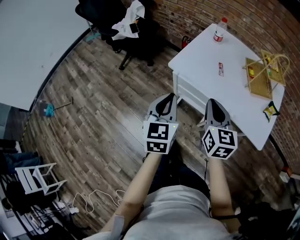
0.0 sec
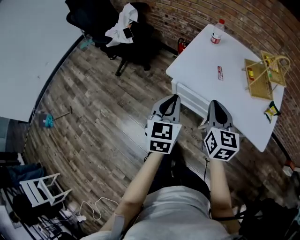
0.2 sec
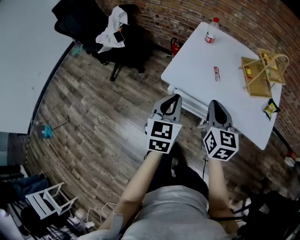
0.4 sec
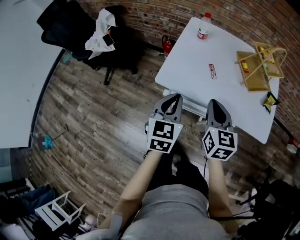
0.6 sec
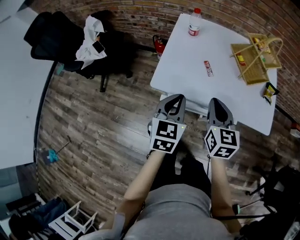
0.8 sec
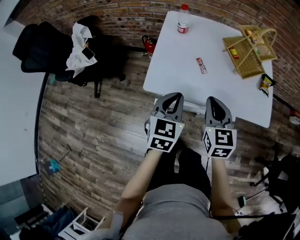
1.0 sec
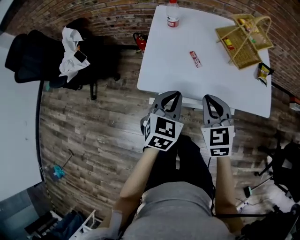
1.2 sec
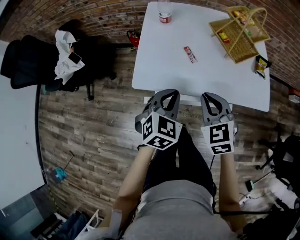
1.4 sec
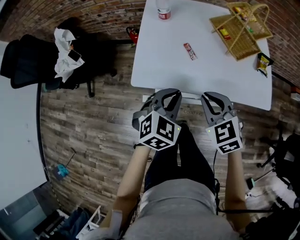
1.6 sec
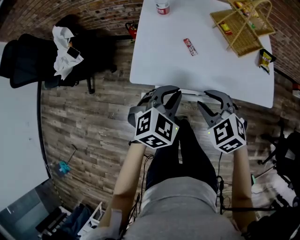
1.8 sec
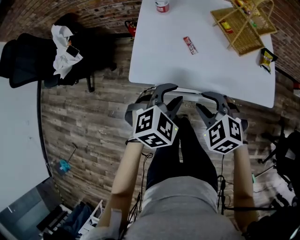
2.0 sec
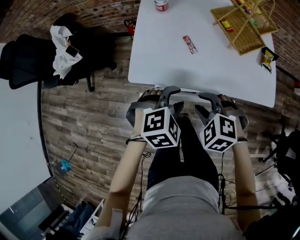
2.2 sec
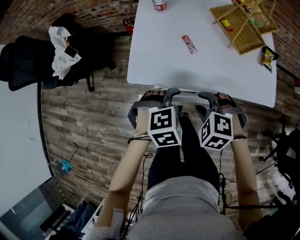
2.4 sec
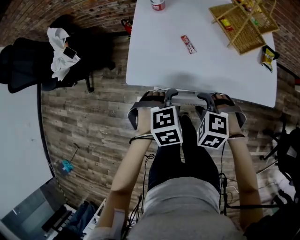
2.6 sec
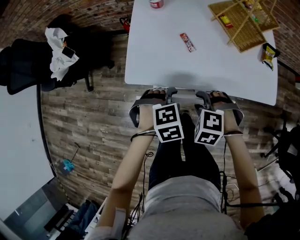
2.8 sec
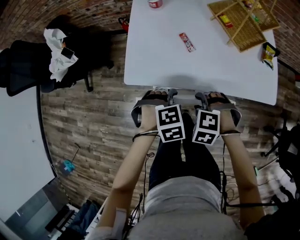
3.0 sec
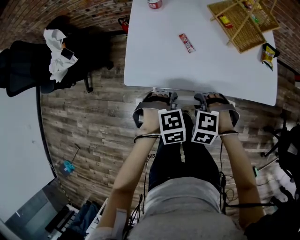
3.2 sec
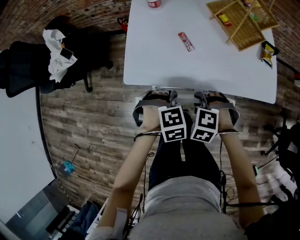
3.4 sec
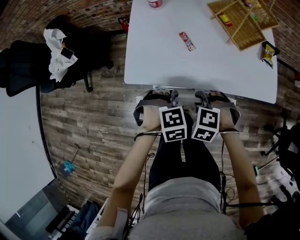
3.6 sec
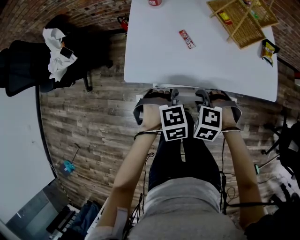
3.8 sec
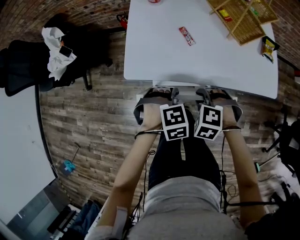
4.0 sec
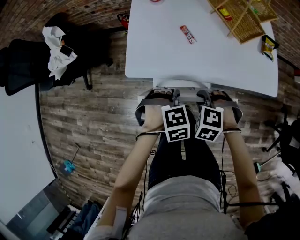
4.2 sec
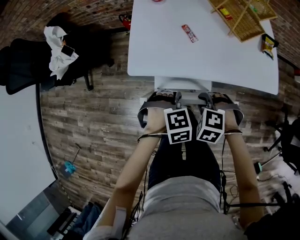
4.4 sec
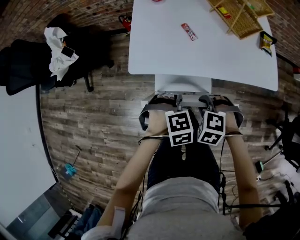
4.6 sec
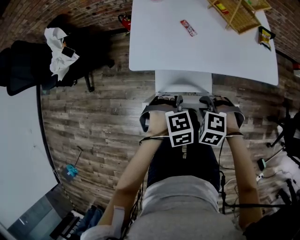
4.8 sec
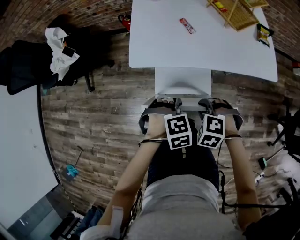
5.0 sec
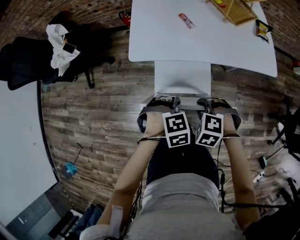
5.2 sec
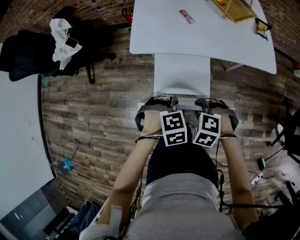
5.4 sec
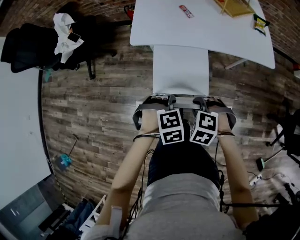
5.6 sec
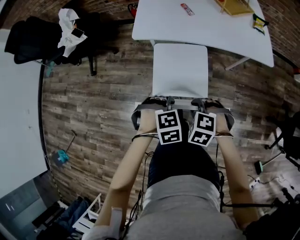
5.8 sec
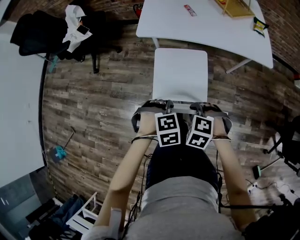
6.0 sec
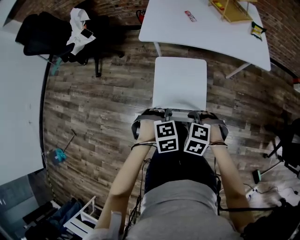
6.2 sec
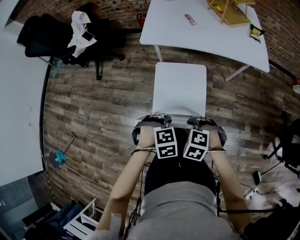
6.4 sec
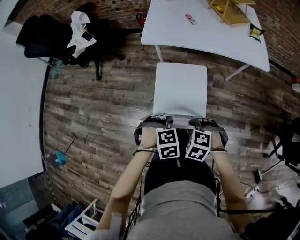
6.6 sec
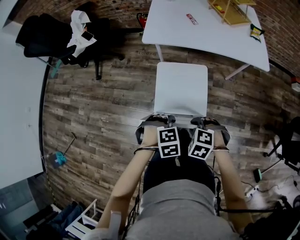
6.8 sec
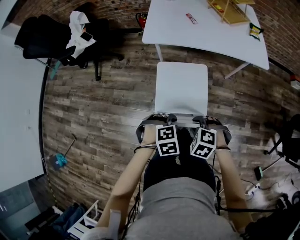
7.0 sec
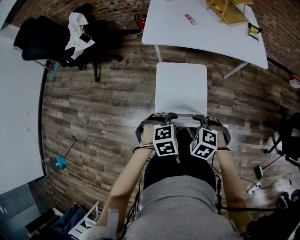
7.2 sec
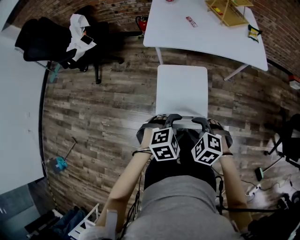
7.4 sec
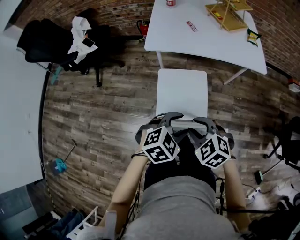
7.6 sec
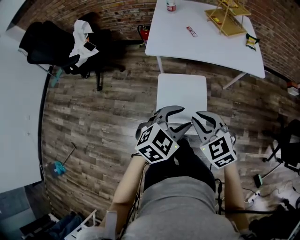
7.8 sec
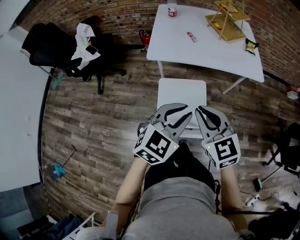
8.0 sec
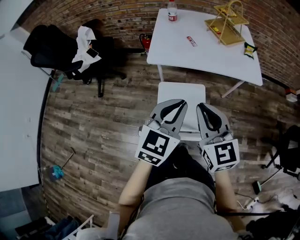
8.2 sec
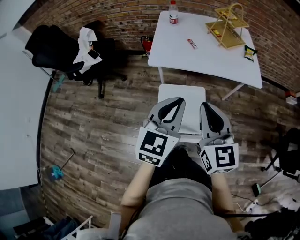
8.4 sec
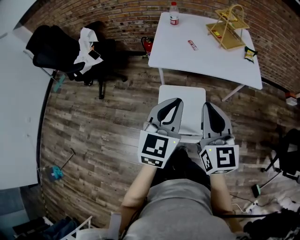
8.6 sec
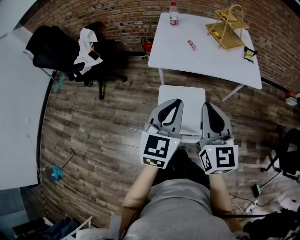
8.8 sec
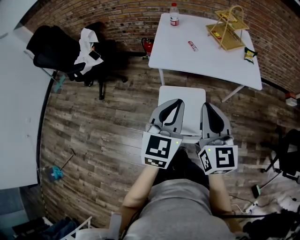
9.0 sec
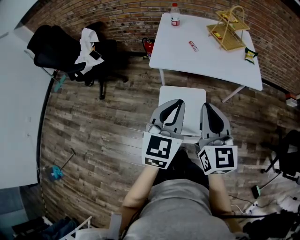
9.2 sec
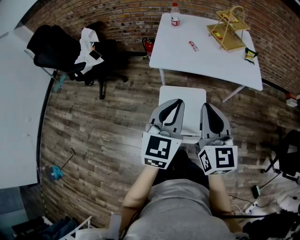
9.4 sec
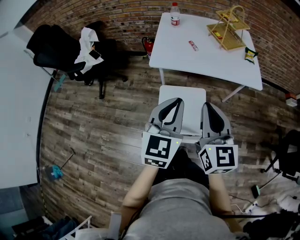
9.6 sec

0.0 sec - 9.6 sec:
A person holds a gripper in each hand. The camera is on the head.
0.0 sec - 1.6 sec: The left gripper changes place by roughly 20 cm, and turns by about 60 degrees, while the right gripper ends up some 10 cm from where it was, and changes its angle by approximately 30 degrees.
1.6 sec - 3.2 sec: Both grippers move downward, about 15 cm. The right gripper tips its fingers downward by about 30 degrees. The left gripper tilts its fingers roughly 40 degrees downward, and opens its fingers.
3.2 sec - 4.8 sec: The right gripper shifts by roughly 10 cm. The left gripper ends up approximately 10 cm from where it was.
4.8 sec - 6.4 sec: The left gripper ends up some 25 cm from where it was. The right gripper ends up approximately 25 cm from where it was.
6.4 sec - 8.0 sec: Both grippers travel together upward, roughly 20 cm. The left gripper tilts its fingers some 50 degrees upward, and opens, then closes again. The right gripper tips its fingers upward by approximately 50 degrees.
8.0 sec - 9.6 sec: Both grippers travel together upward, about 5 cm. The right gripper changes its angle by roughly 30 degrees, while the left gripper rotates approximately 30 degrees.

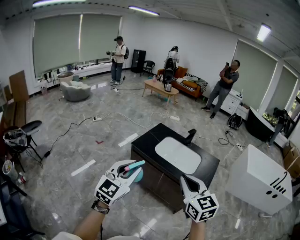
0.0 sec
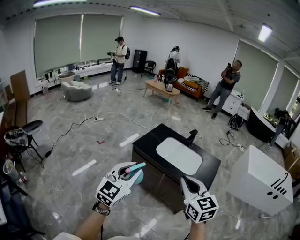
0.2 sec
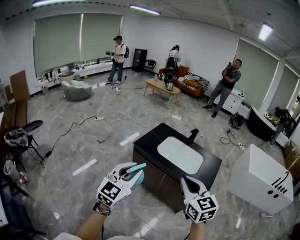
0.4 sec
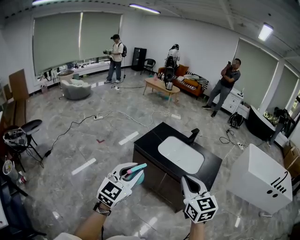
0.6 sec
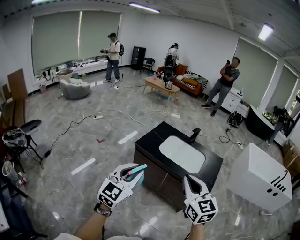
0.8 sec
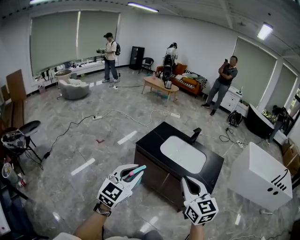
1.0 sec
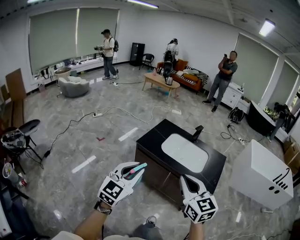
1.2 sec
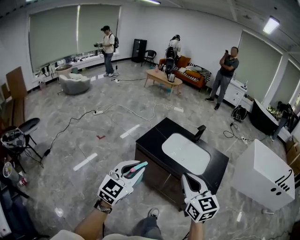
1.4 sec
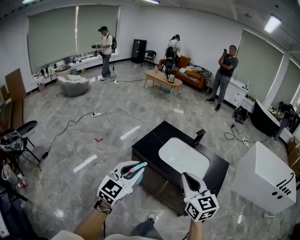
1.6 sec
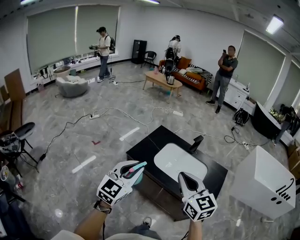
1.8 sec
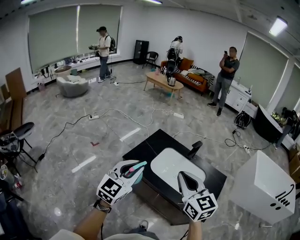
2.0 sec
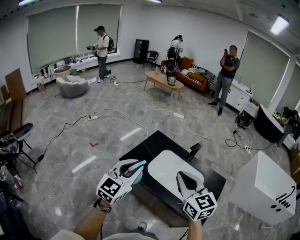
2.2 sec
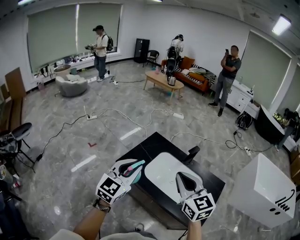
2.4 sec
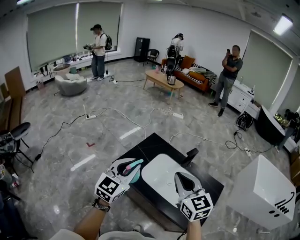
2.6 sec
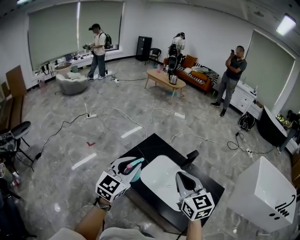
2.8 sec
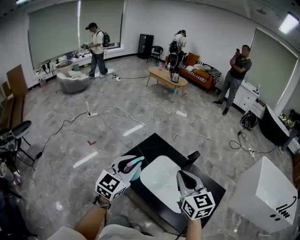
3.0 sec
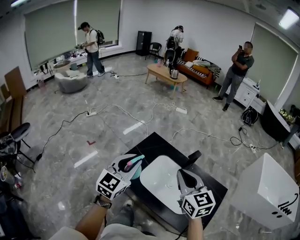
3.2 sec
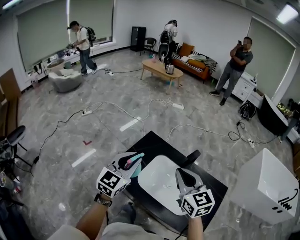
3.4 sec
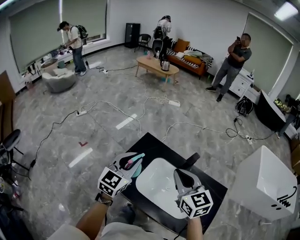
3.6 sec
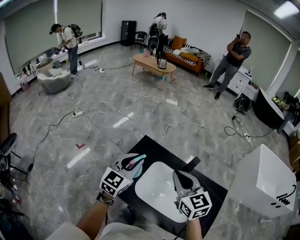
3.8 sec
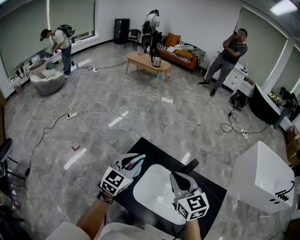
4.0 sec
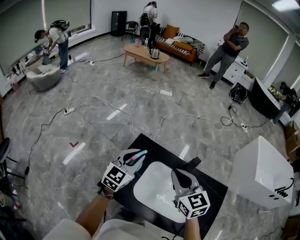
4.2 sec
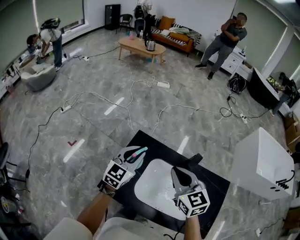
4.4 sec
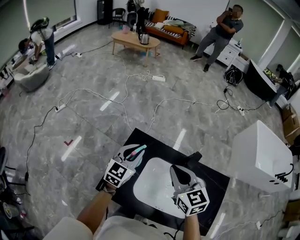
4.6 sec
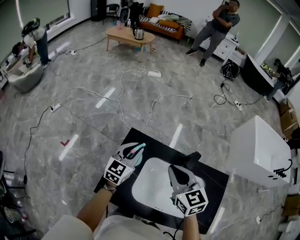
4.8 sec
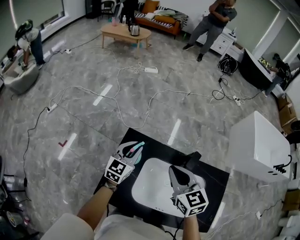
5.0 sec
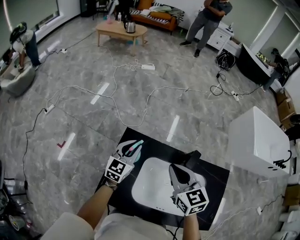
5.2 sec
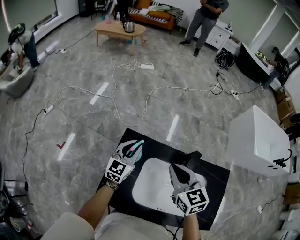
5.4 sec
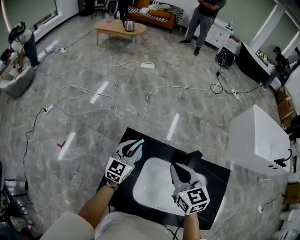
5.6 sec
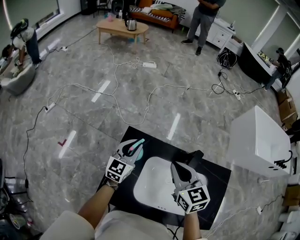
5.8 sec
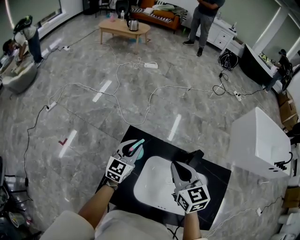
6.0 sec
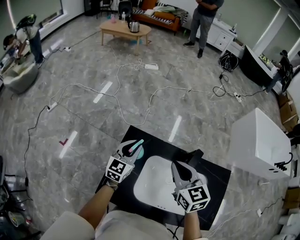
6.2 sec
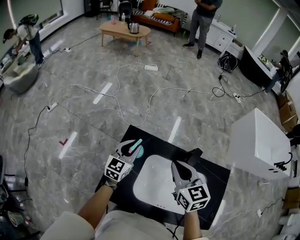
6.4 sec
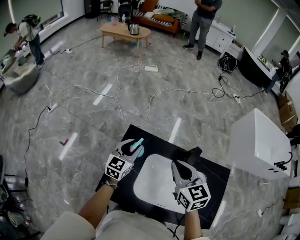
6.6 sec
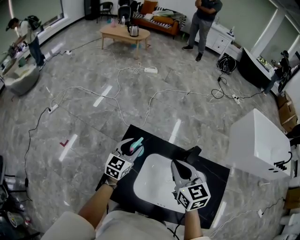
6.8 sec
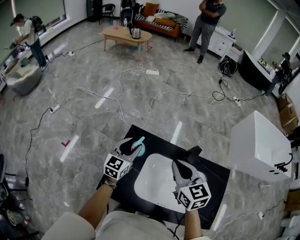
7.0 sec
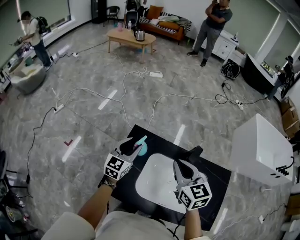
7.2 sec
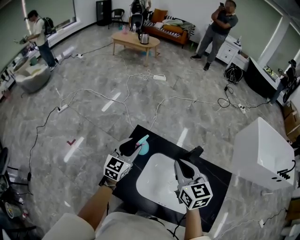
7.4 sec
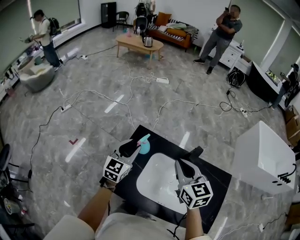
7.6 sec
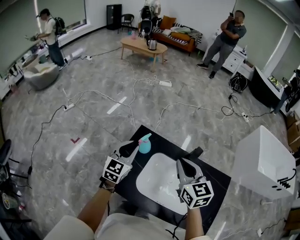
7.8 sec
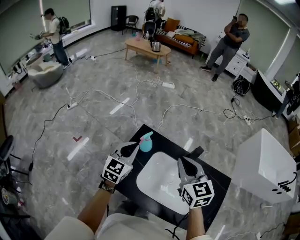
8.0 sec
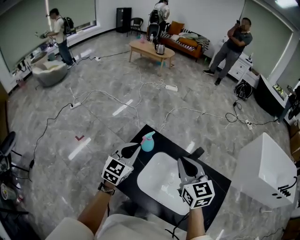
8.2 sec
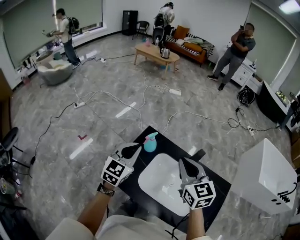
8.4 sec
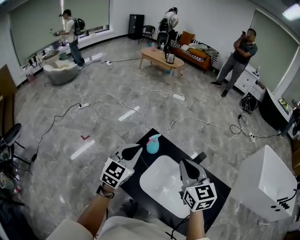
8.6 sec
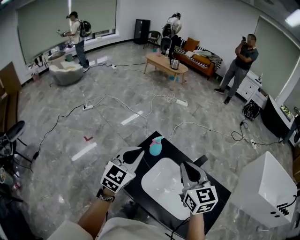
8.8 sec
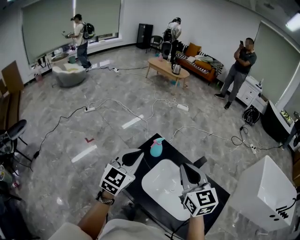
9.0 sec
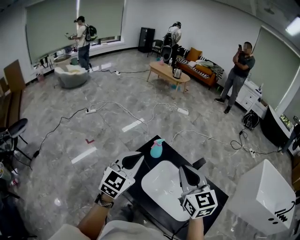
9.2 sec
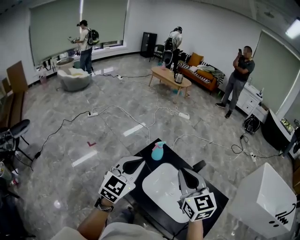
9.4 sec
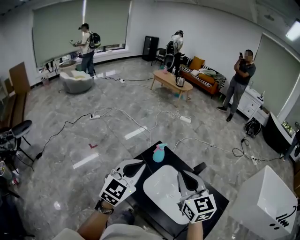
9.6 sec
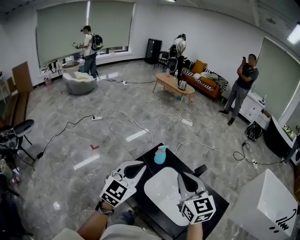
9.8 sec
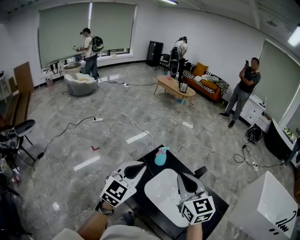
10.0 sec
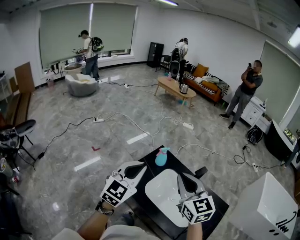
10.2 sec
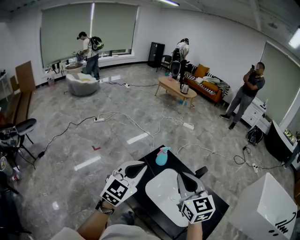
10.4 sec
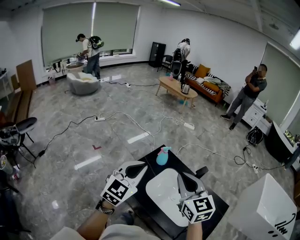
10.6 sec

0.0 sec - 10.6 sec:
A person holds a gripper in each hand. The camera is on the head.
0.0 sec - 1.6 sec: Both grippers move forward, approximately 15 cm.
1.6 sec - 3.0 sec: The two grippers go about 25 cm forward.
3.0 sec - 4.6 sec: Both grippers move forward and downward, about 30 cm.
4.6 sec - 6.0 sec: The left gripper travels forward and downward by about 10 cm. Meanwhile the right gripper goes about 5 cm forward.
6.0 sec - 7.6 sec: The right gripper goes roughly 5 cm backward; the left gripper heads backward and upward, covering roughly 10 cm.
7.6 sec - 9.0 sec: The left gripper shifts approximately 20 cm backward and upward, and closes. Meanwhile the right gripper is displaced backward and upward by roughly 15 cm.
9.0 sec - 10.6 sec: Both grippers travel together backward, about 10 cm.

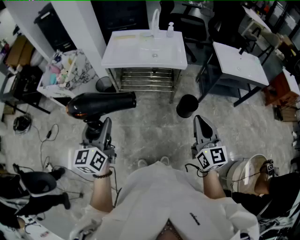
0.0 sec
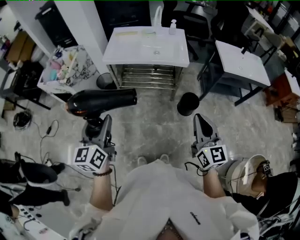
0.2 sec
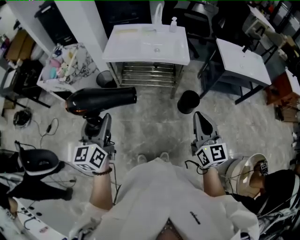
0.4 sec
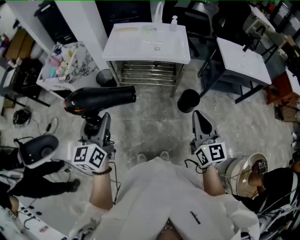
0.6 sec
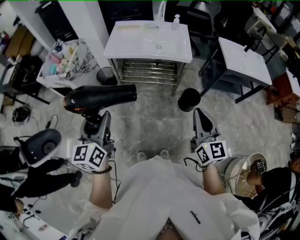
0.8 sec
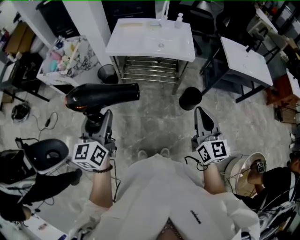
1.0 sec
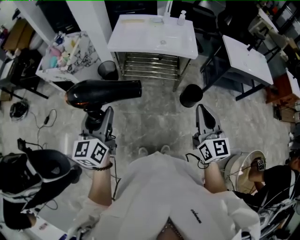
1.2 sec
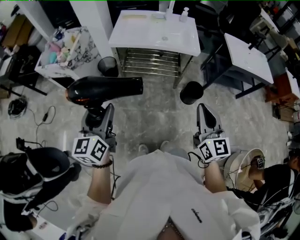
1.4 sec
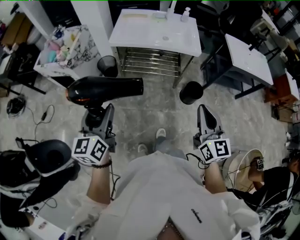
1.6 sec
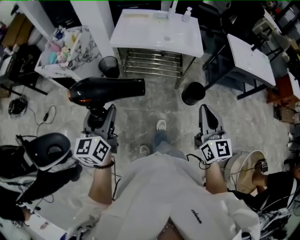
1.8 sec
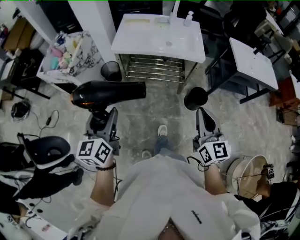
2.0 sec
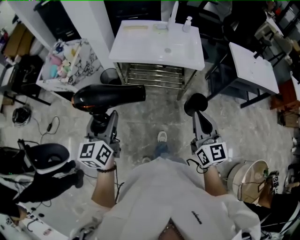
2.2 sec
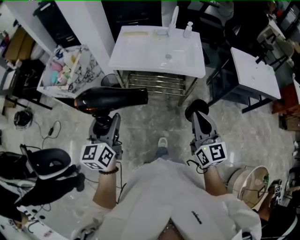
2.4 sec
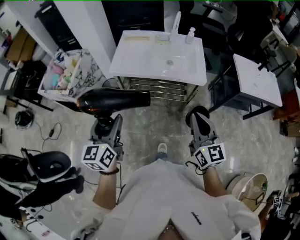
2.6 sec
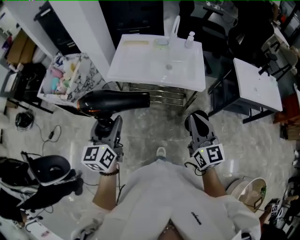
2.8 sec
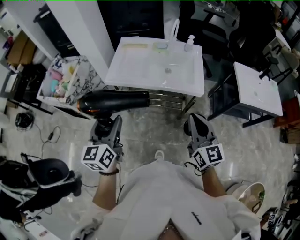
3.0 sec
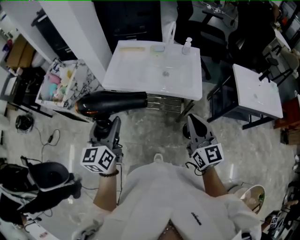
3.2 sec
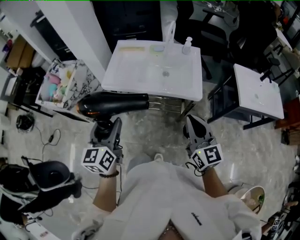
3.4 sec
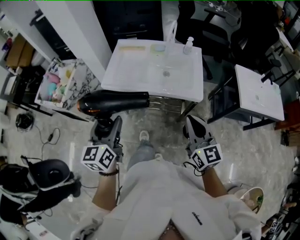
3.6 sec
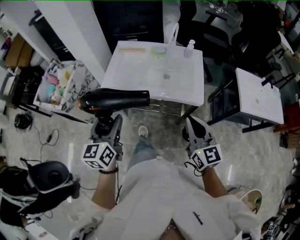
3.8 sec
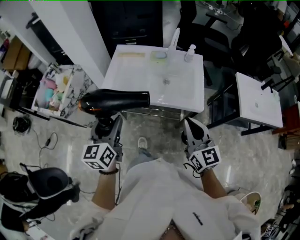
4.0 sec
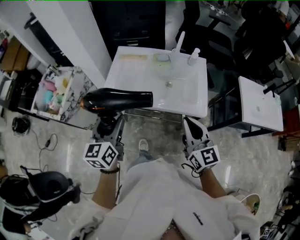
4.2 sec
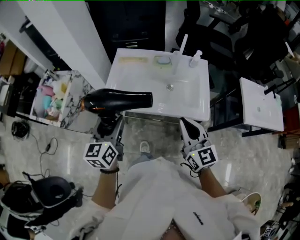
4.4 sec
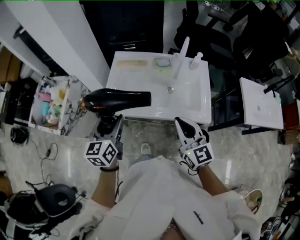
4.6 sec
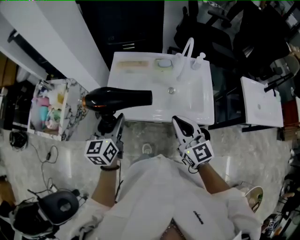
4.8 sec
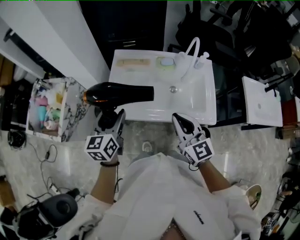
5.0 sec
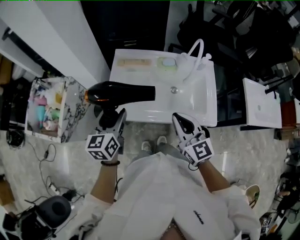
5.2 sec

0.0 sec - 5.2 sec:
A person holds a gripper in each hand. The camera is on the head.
0.0 sec - 1.8 sec: The left gripper travels to the left by roughly 10 cm, while the right gripper goes approximately 10 cm to the left and forward.
1.8 sec - 3.4 sec: The left gripper goes about 30 cm forward and to the right. The right gripper travels forward by some 30 cm.
3.4 sec - 5.2 sec: The left gripper shifts some 35 cm forward, while the right gripper shifts approximately 35 cm forward and to the left.
